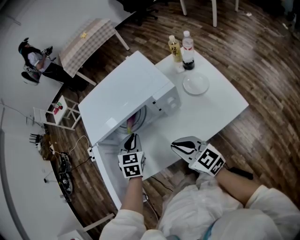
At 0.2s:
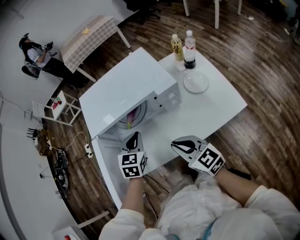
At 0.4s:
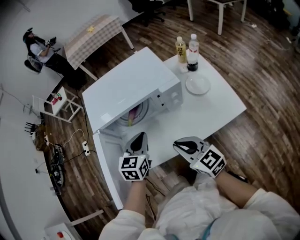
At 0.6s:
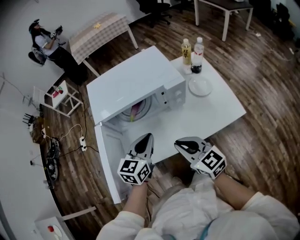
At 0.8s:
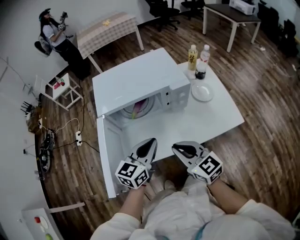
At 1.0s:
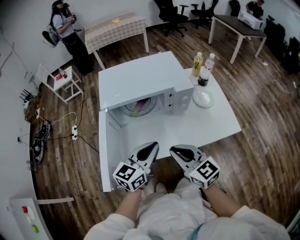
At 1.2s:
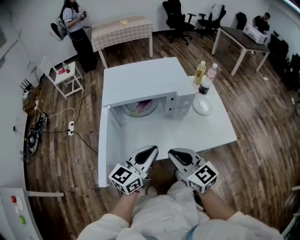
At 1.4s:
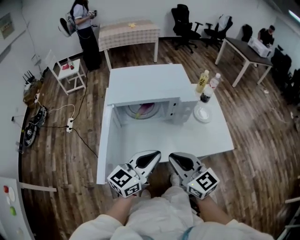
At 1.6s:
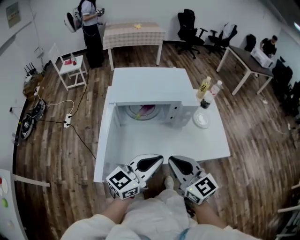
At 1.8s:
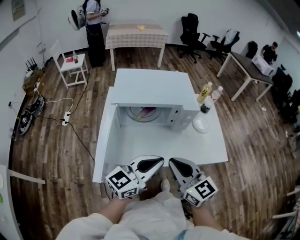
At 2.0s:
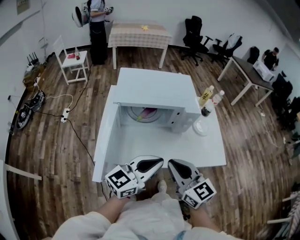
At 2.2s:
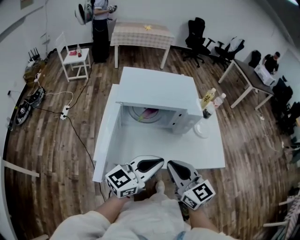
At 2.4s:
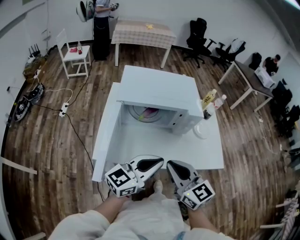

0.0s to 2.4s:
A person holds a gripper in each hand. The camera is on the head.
0.0s to 1.2s: The left gripper heads backward and upward, covering about 20 cm, and tilts its fingers about 40 degrees upward, while the right gripper travels backward and upward by some 10 cm.
1.2s to 2.4s: The grippers stay close to where they were, moving slightly.

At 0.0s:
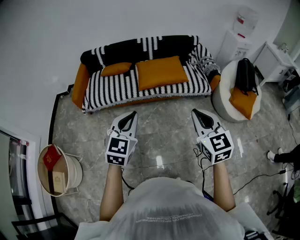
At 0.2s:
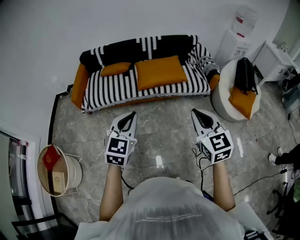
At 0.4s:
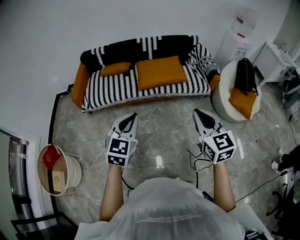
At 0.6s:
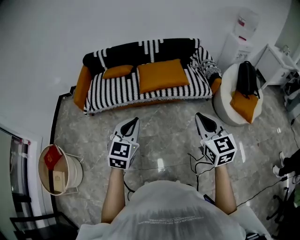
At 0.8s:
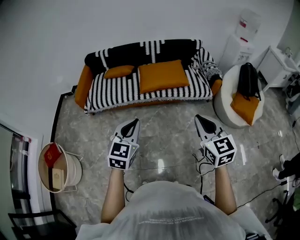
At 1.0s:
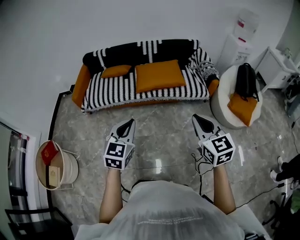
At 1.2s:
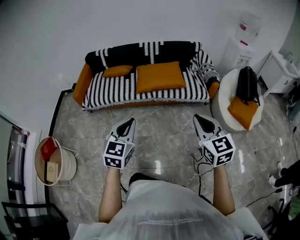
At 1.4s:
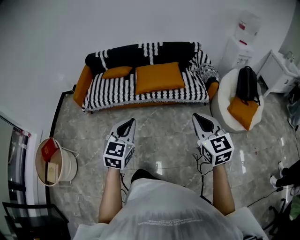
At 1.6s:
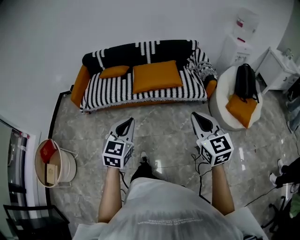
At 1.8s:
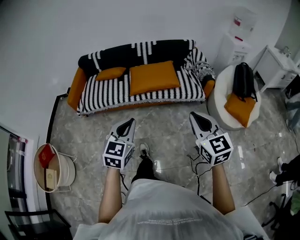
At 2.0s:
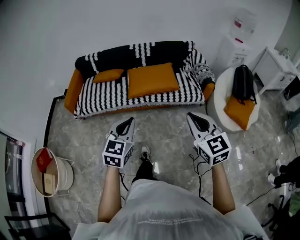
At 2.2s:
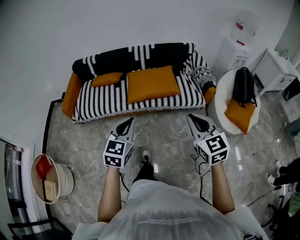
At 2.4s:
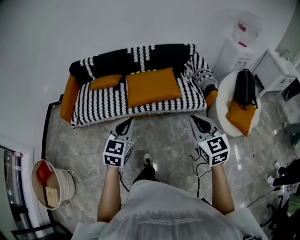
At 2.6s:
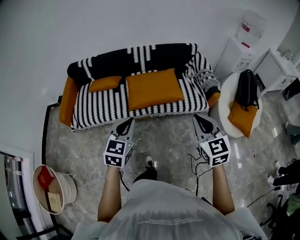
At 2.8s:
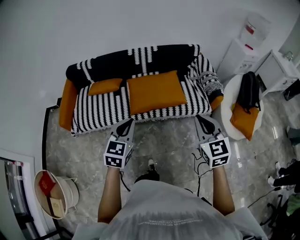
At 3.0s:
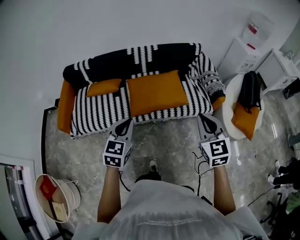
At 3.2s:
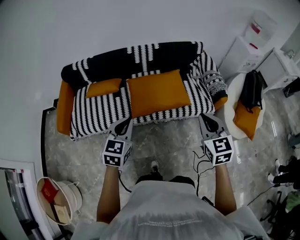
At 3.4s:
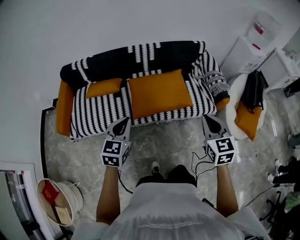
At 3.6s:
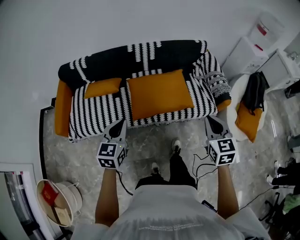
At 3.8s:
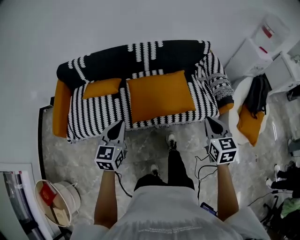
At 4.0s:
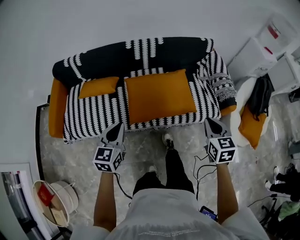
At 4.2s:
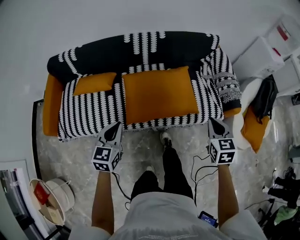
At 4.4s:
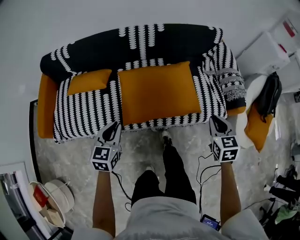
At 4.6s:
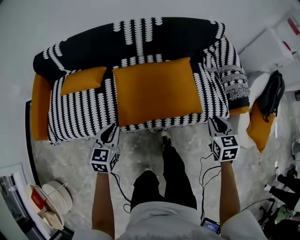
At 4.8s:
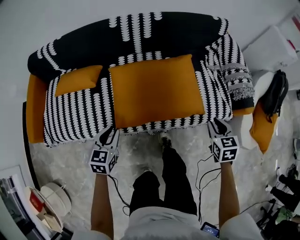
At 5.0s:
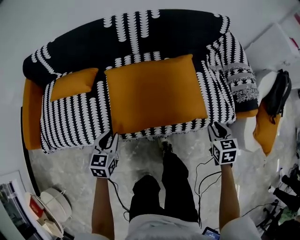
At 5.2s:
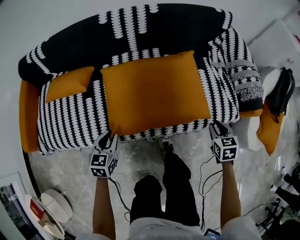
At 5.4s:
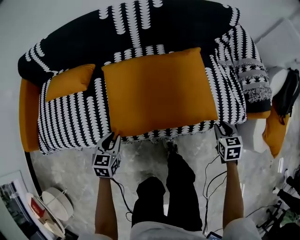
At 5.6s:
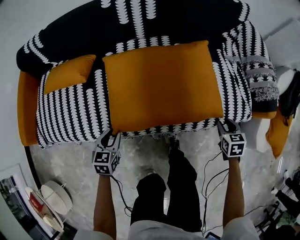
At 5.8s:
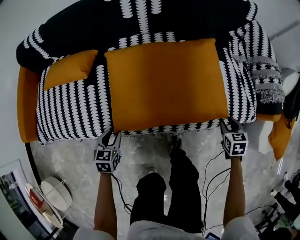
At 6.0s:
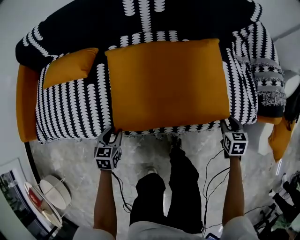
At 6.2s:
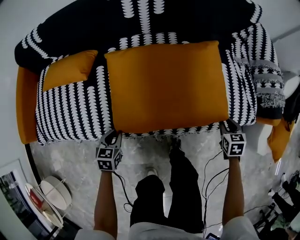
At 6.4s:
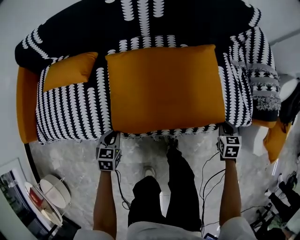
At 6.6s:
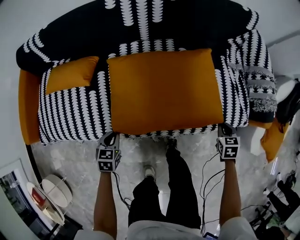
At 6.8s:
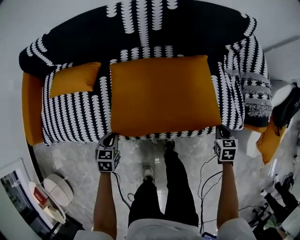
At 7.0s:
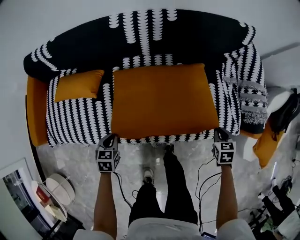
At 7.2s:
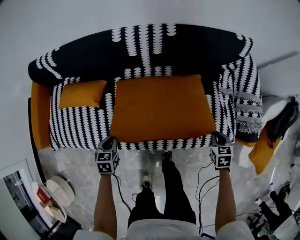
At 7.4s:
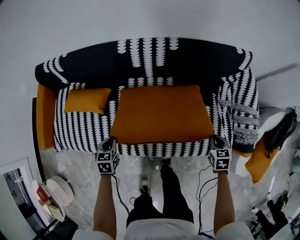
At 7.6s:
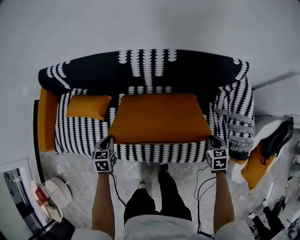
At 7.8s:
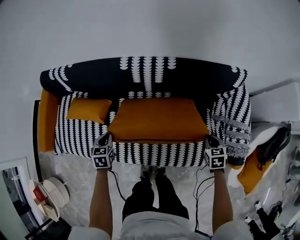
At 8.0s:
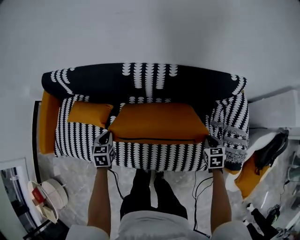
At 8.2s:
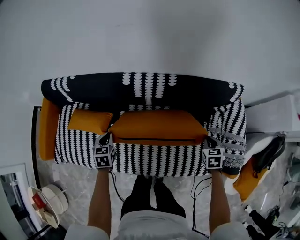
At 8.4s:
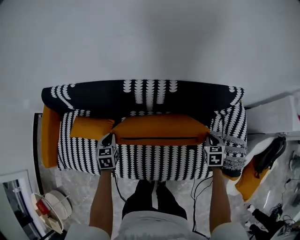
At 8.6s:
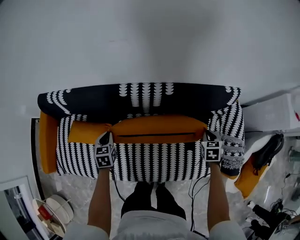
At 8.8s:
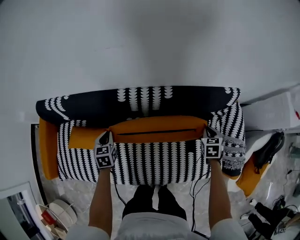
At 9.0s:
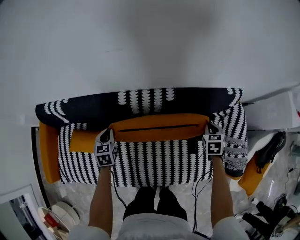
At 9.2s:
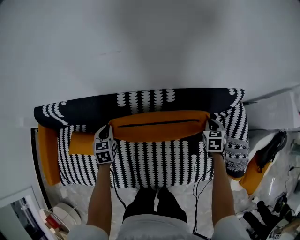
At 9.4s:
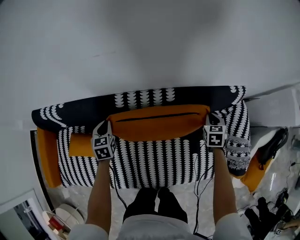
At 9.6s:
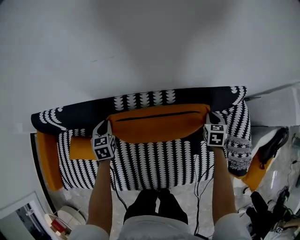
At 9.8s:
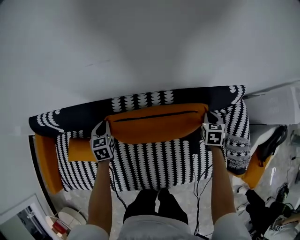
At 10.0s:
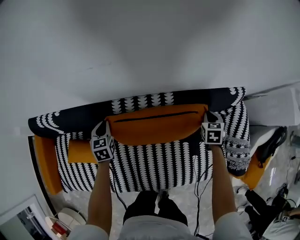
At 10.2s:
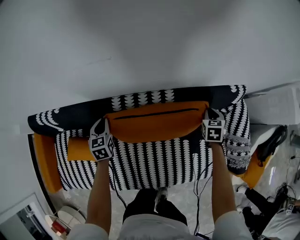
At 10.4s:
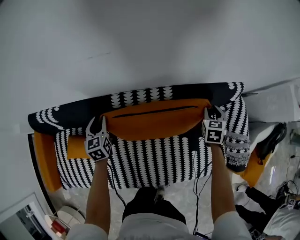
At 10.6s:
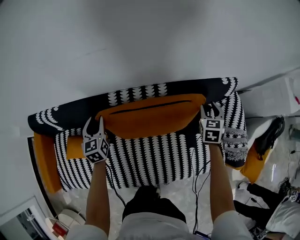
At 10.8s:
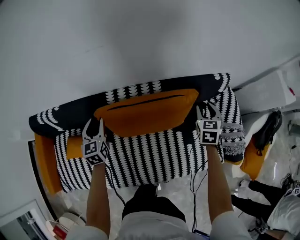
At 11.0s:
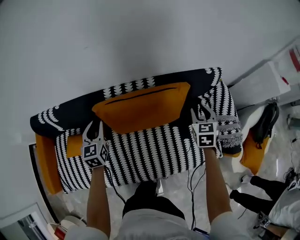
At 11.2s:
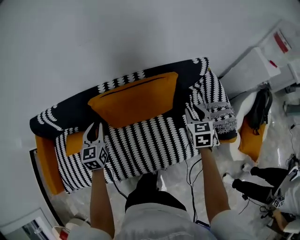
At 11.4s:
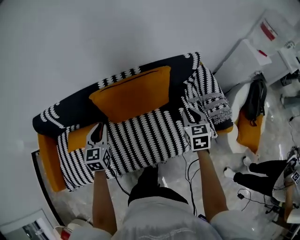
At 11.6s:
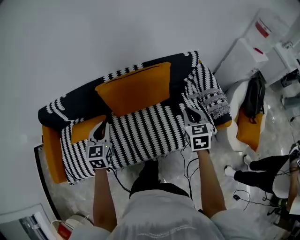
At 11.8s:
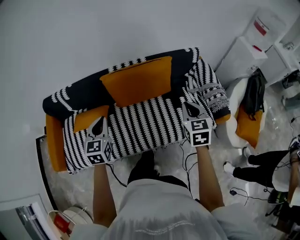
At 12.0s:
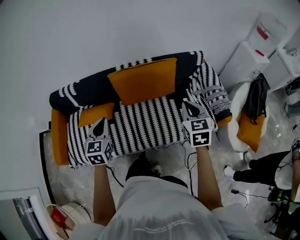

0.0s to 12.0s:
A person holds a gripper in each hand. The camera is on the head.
0.0s to 1.6s: The grippers both shift to the right by approximately 10 cm.
1.6s to 3.0s: Both grippers travel together forward, approximately 35 cm.
3.0s to 4.4s: Both grippers move downward and forward, approximately 35 cm. The right gripper turns by approximately 20 degrees.
4.4s to 6.0s: Both grippers travel together downward, approximately 35 cm. The left gripper changes its angle by about 20 degrees, and opens up, while the right gripper opens.
6.0s to 7.6s: Both grippers move upward and forward, about 25 cm. The right gripper closes. The left gripper closes.
7.6s to 9.0s: Both grippers travel together forward, roughly 25 cm.
9.0s to 10.4s: The grippers both shift forward by approximately 10 cm. The left gripper opens up.
10.4s to 12.0s: The two grippers travel together, backward, roughly 40 cm. Both grippers move upward, roughly 25 cm. The right gripper changes its angle by approximately 20 degrees, and closes its fingers; the left gripper changes its angle by roughly 20 degrees, and closes.

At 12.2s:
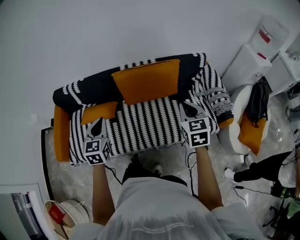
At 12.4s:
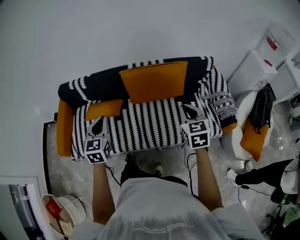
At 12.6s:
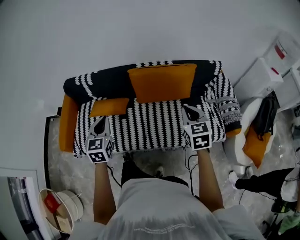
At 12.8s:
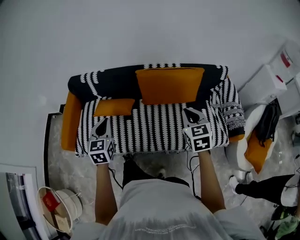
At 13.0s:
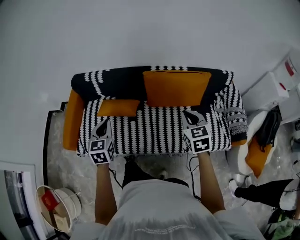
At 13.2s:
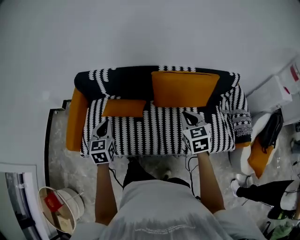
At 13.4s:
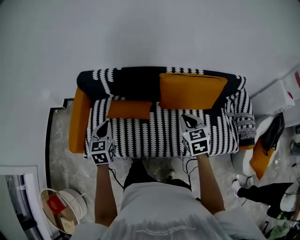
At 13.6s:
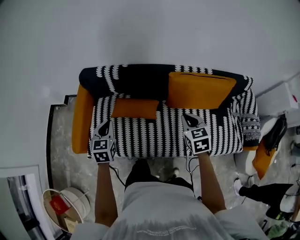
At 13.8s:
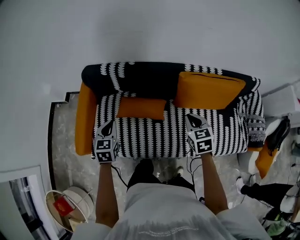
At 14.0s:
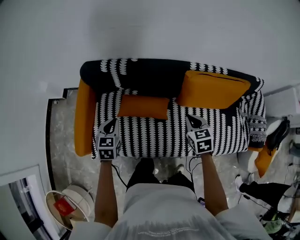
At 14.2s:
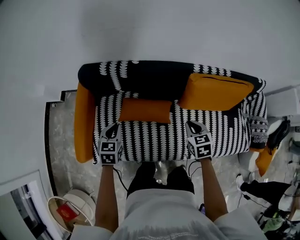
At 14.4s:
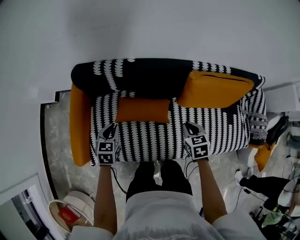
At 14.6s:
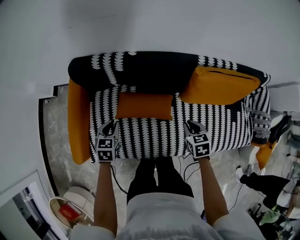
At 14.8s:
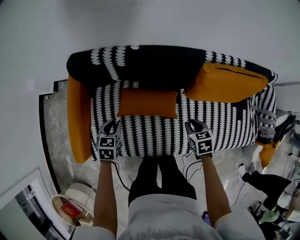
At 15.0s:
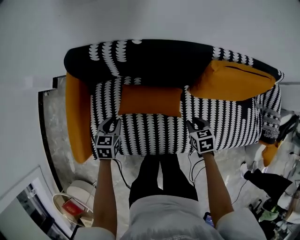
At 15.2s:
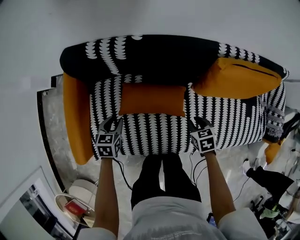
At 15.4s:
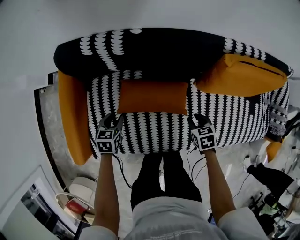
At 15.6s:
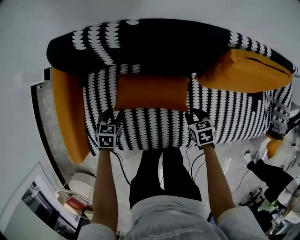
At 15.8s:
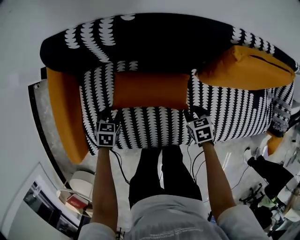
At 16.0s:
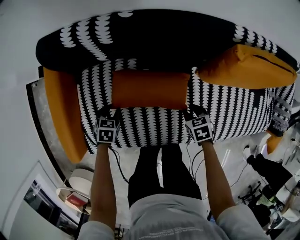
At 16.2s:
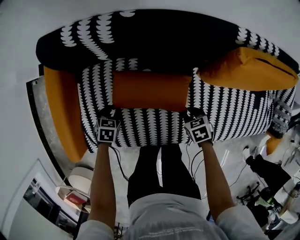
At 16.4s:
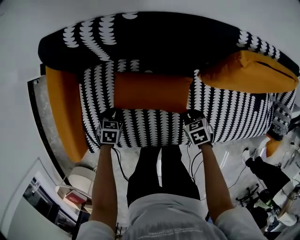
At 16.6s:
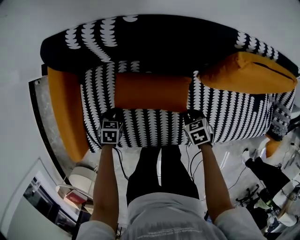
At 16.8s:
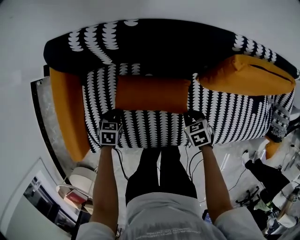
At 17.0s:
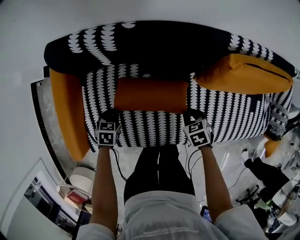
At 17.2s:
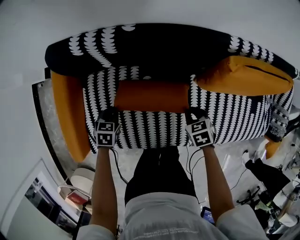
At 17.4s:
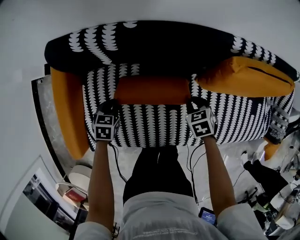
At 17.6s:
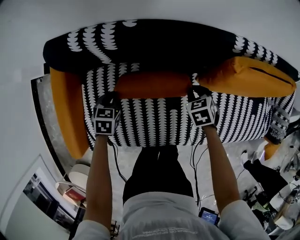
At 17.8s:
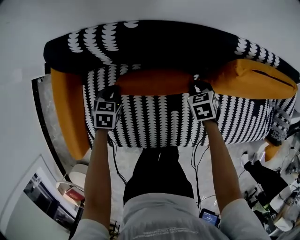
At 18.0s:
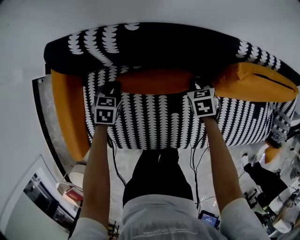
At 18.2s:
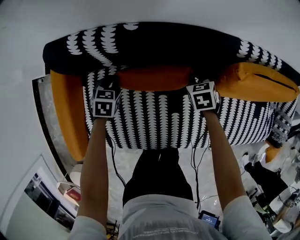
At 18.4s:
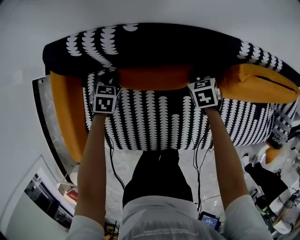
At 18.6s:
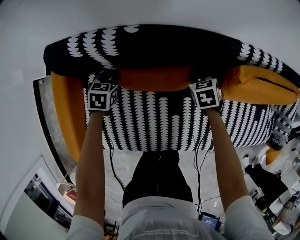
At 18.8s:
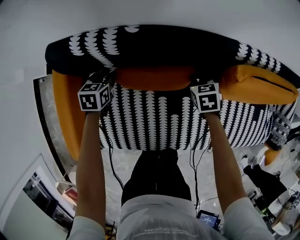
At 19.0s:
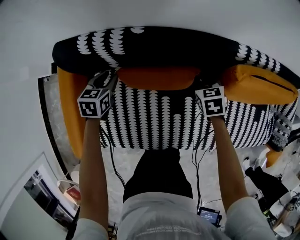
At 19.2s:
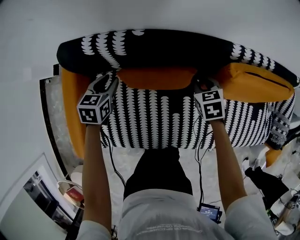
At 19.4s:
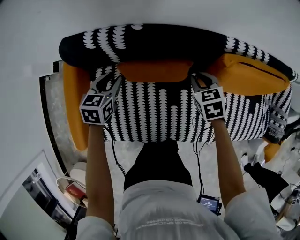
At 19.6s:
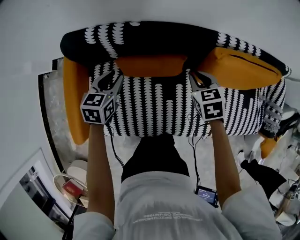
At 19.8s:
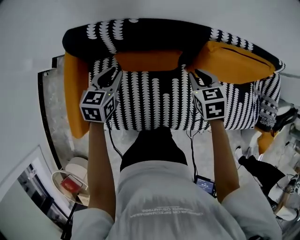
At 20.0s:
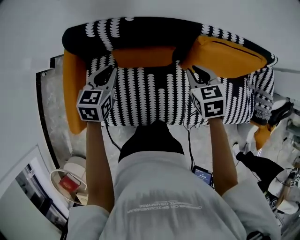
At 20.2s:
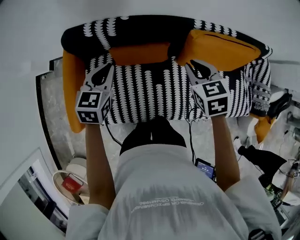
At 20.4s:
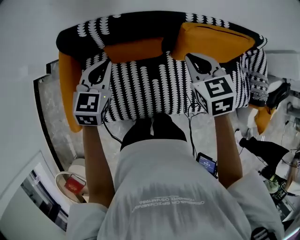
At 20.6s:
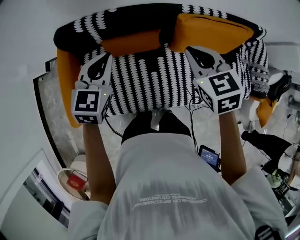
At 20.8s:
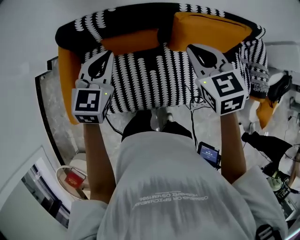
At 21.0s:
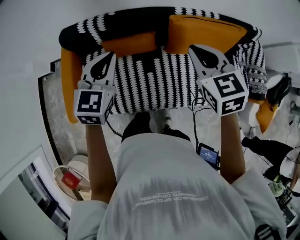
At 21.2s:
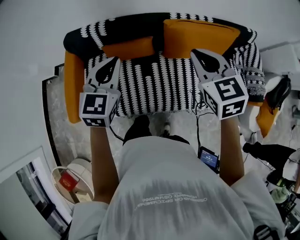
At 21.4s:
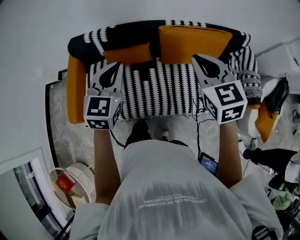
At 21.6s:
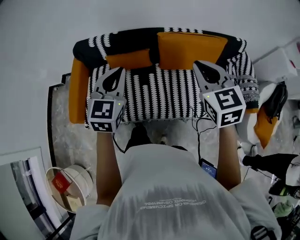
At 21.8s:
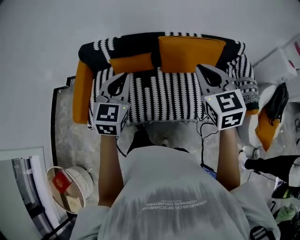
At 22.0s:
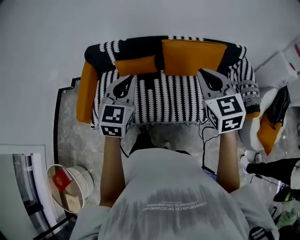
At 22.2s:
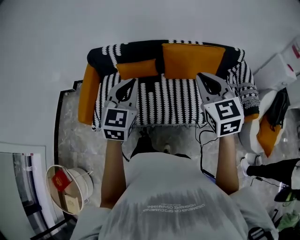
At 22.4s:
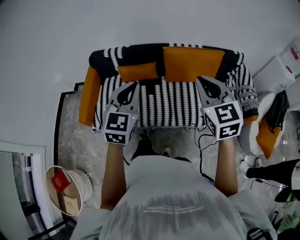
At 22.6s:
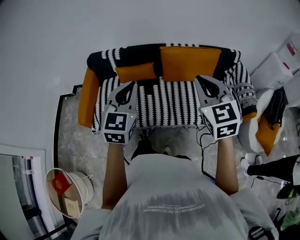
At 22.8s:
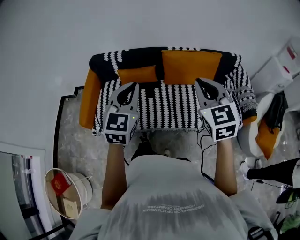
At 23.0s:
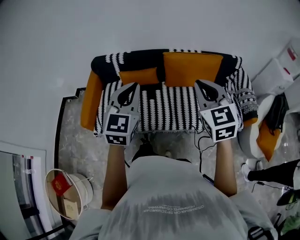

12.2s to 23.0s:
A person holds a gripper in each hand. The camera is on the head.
12.2s to 13.8s: Both grippers move to the left and forward, about 40 cm. The right gripper turns by roughly 20 degrees.
13.8s to 15.2s: The grippers both shift downward by some 25 cm. The right gripper rotates about 30 degrees; the left gripper changes its angle by roughly 20 degrees, and opens its fingers.
15.2s to 16.8s: Both grippers travel together downward, approximately 10 cm. The left gripper closes up.
16.8s to 18.4s: The grippers both shift forward by some 20 cm.
18.4s to 20.0s: The left gripper is displaced upward by approximately 30 cm, swivels approximately 30 degrees, and opens, then closes once more, while the right gripper shifts roughly 35 cm upward and backward.
20.0s to 21.4s: The left gripper shifts about 35 cm upward, to the right and backward, and swivels approximately 30 degrees, while the right gripper is displaced upward, backward and to the right by about 35 cm, and rotates some 30 degrees.
21.4s to 23.0s: The right gripper heads backward, covering roughly 20 cm, while the left gripper moves backward and upward, about 20 cm.
